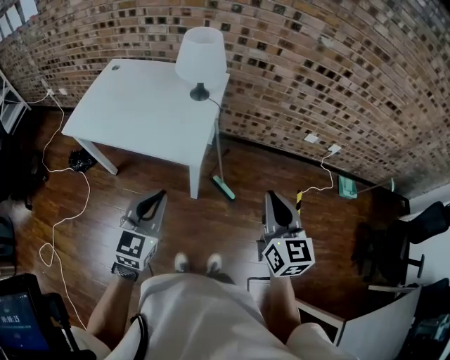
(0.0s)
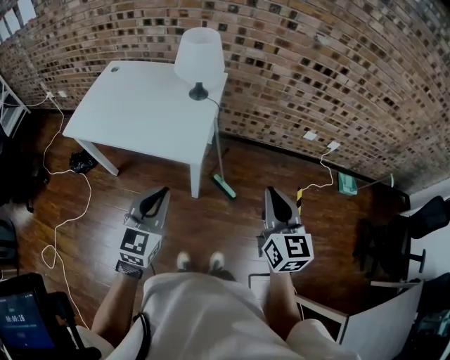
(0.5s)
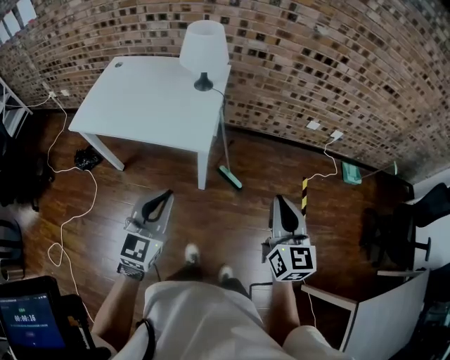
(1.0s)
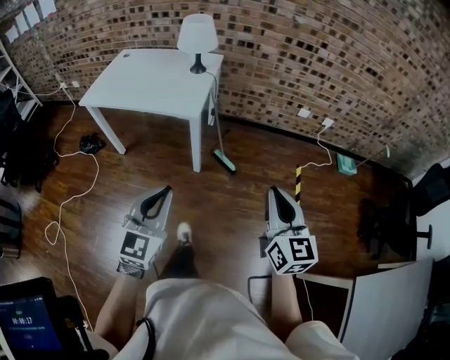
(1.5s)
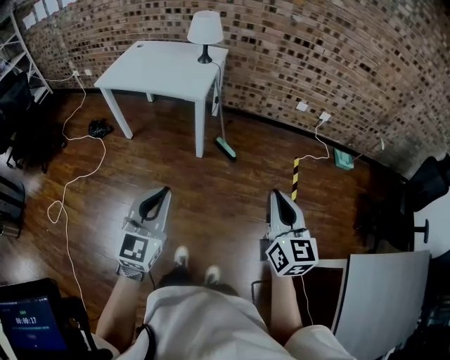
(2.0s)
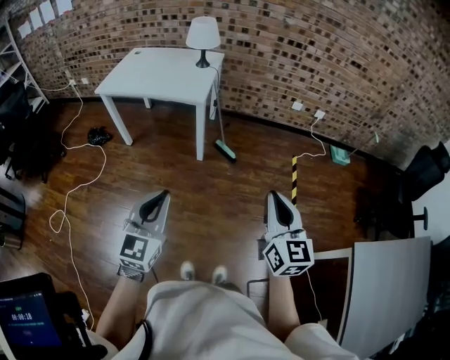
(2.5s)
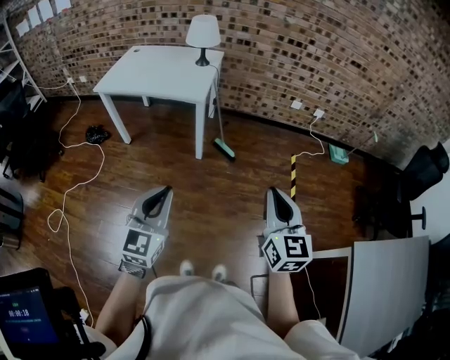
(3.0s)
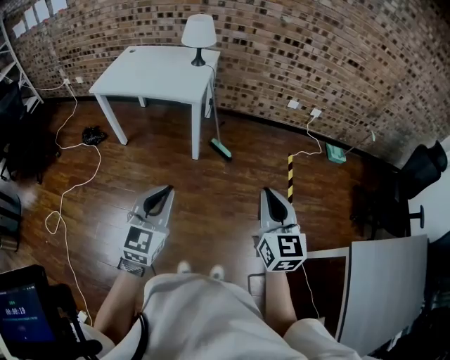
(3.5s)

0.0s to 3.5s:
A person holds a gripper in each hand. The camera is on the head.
0.0s to 2.0s: The two grippers travel together, backward, approximately 40 cm.
2.0s to 3.5s: The right gripper shifts roughly 5 cm to the left.

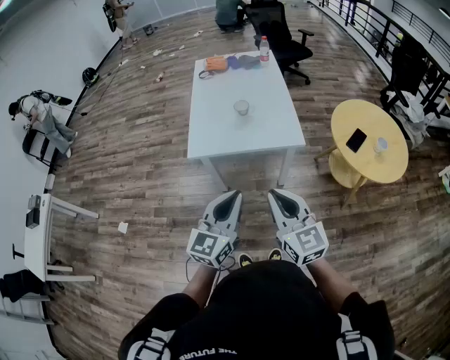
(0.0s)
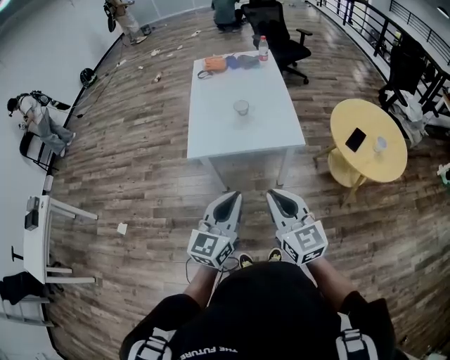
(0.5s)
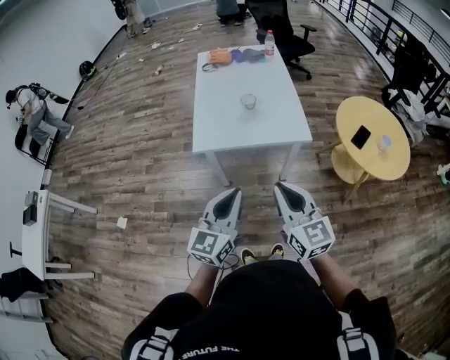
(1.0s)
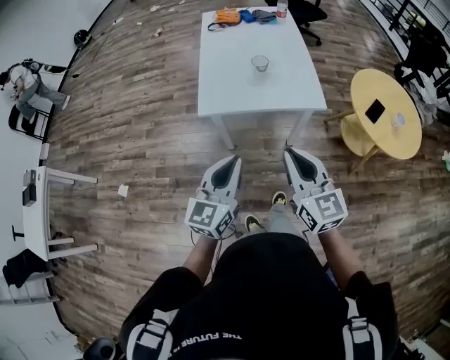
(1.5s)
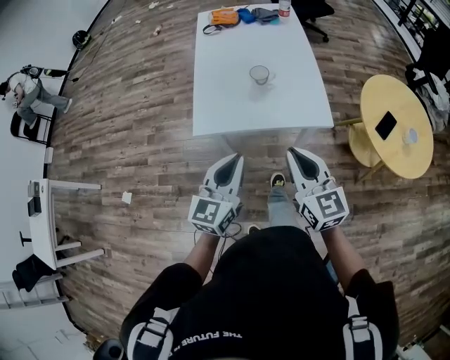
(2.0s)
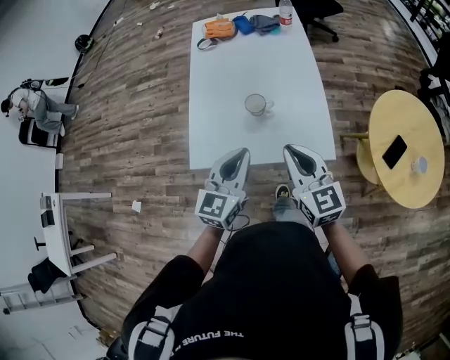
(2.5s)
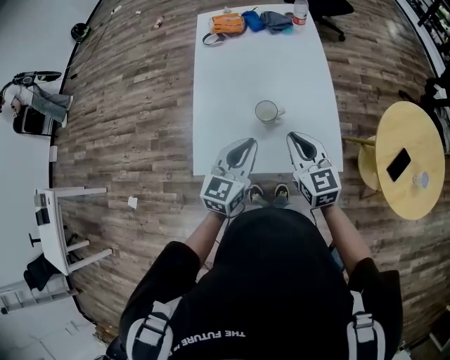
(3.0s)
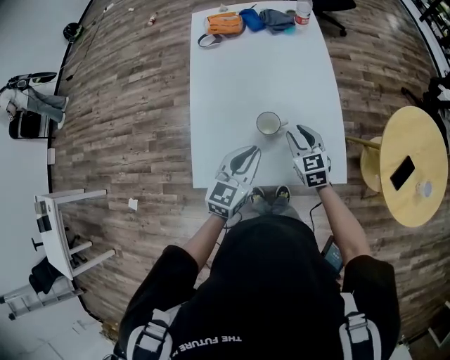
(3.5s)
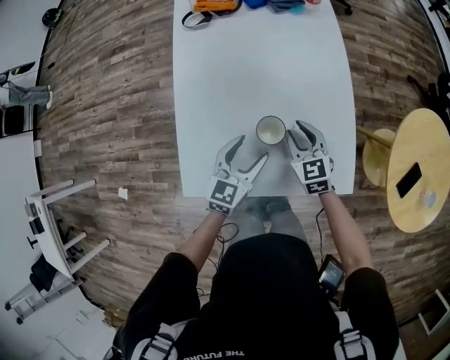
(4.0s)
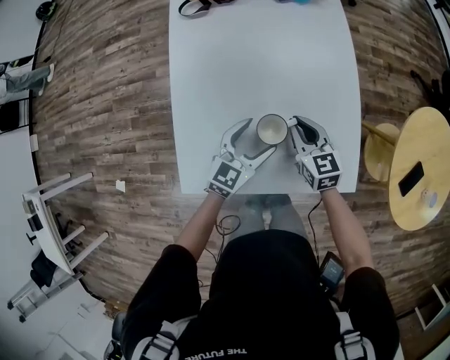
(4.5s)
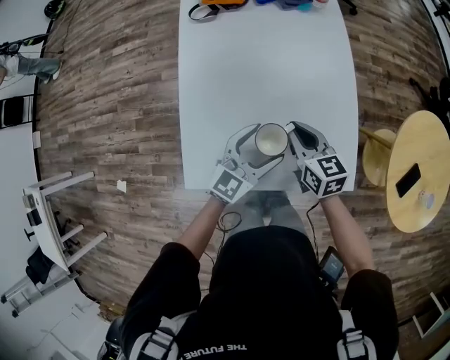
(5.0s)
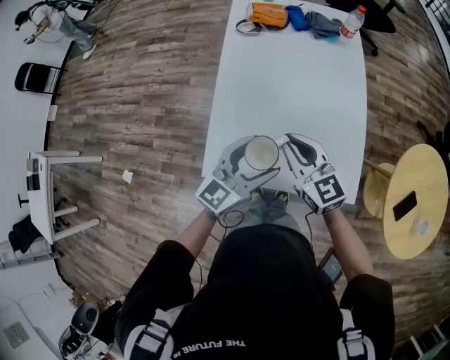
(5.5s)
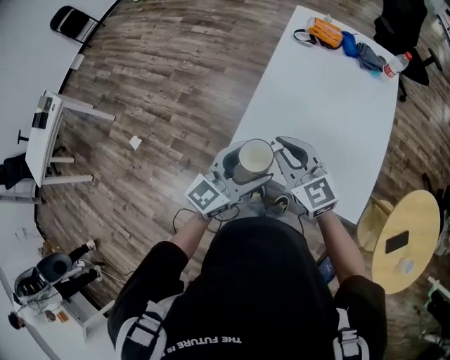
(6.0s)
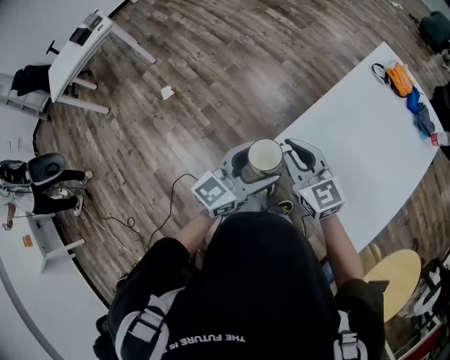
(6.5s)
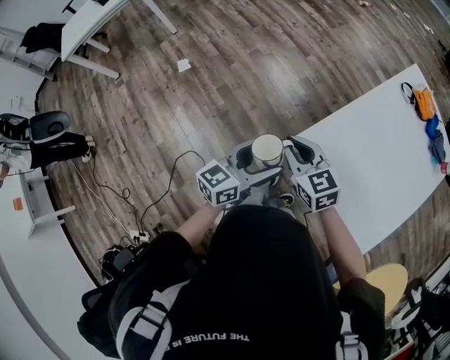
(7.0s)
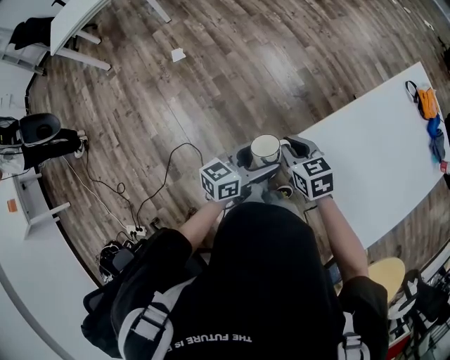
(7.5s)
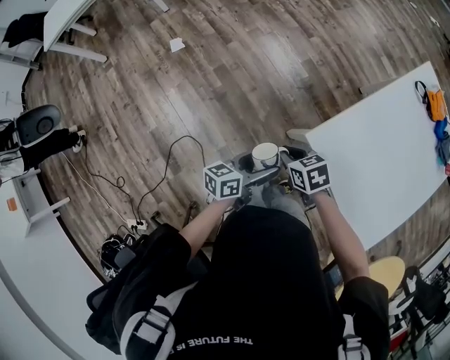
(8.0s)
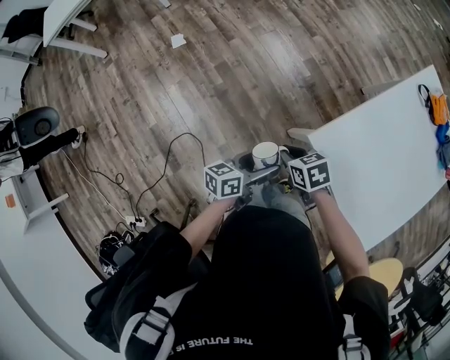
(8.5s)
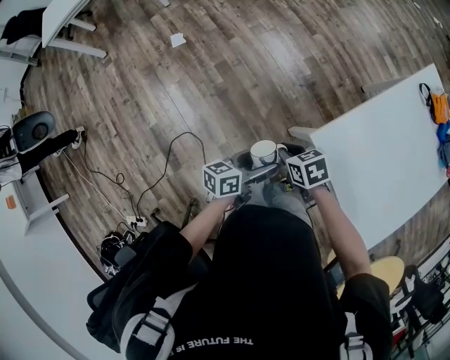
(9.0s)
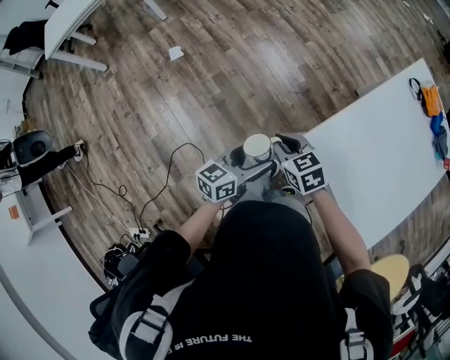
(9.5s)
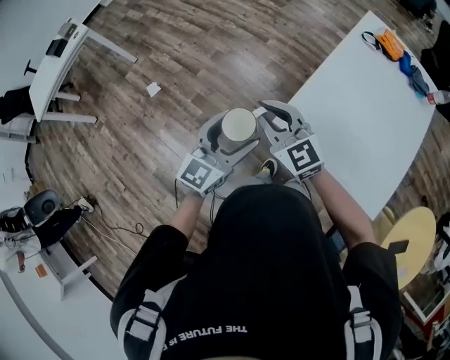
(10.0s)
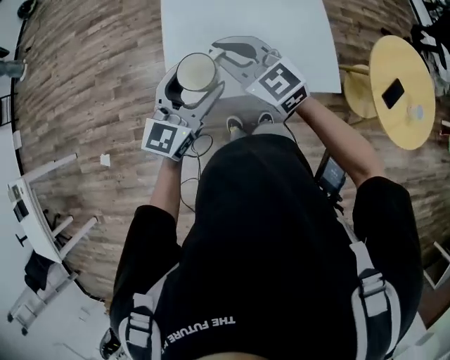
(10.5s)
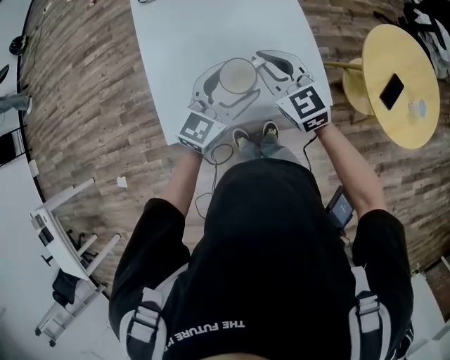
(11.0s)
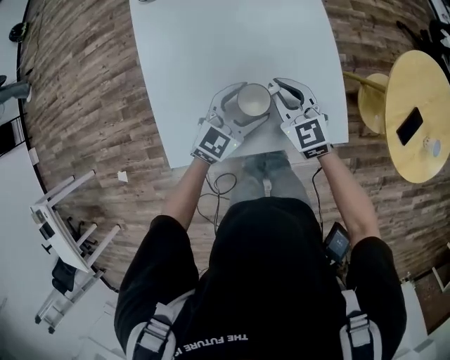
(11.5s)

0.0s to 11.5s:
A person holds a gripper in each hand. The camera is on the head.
0.0s to 2.0s: The left gripper shifts some 20 cm forward and downward; the right gripper heads forward, covering approximately 20 cm.
2.0s to 4.0s: Both grippers travel together forward and downward, approximately 50 cm. The right gripper swivels approximately 30 degrees, and opens; the left gripper opens its fingers.
4.0s to 6.0s: The right gripper moves approximately 35 cm, and rotates some 40 degrees. Meanwhile the left gripper ends up some 25 cm from where it was, and changes its angle by approximately 20 degrees.
6.0s to 7.5s: The right gripper changes place by approximately 30 cm, and tips its fingers downward by roughly 30 degrees. The left gripper changes place by approximately 30 cm, and rotates roughly 40 degrees.
7.5s to 9.5s: The right gripper goes downward and returns, about 10 cm each way.
9.5s to 11.5s: Both grippers are carried roughly 60 cm. The left gripper changes its angle by roughly 80 degrees. Meanwhile the right gripper turns by roughly 60 degrees.

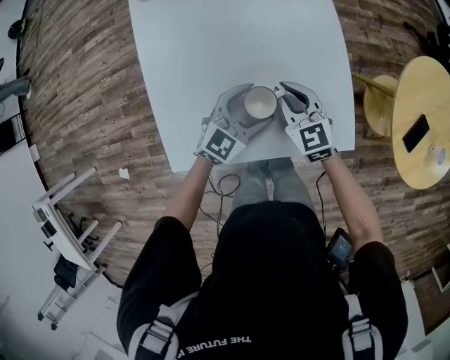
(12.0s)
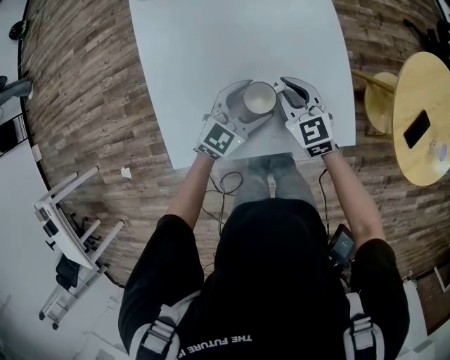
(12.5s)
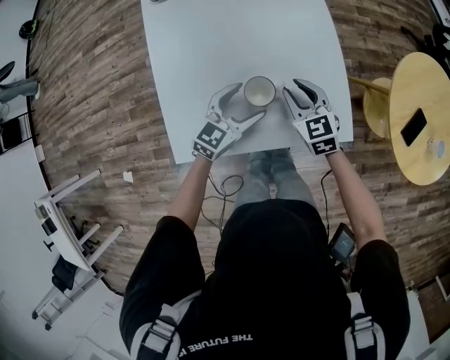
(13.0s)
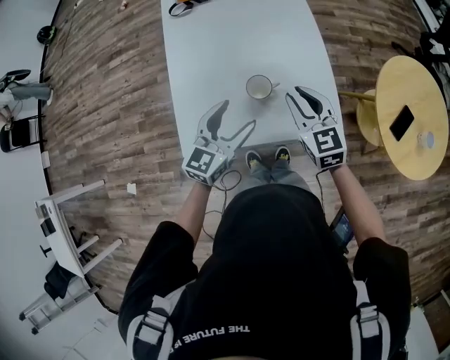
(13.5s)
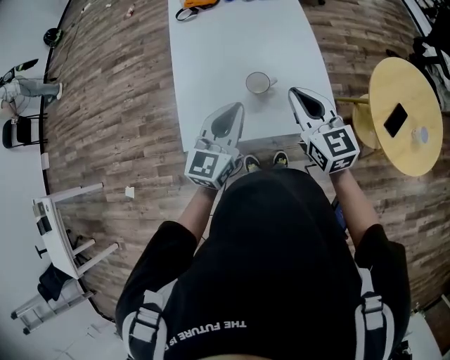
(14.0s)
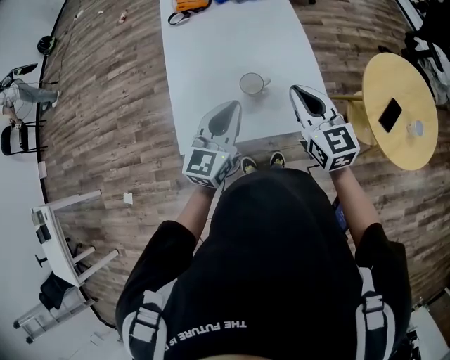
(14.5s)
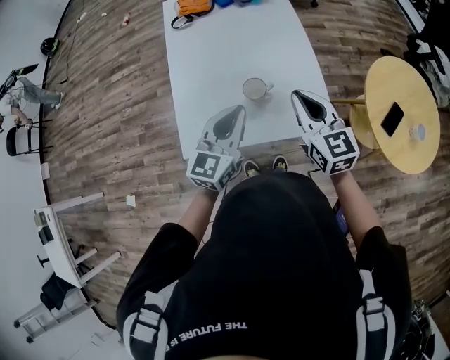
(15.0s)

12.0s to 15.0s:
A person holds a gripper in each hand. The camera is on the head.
12.0s to 13.5s: Both grippers travel together upward and backward, approximately 20 cm. The left gripper swivels some 20 degrees.
13.5s to 15.0s: The grippers both shift upward by roughly 10 cm. The left gripper closes its fingers. Meanwhile the right gripper closes.

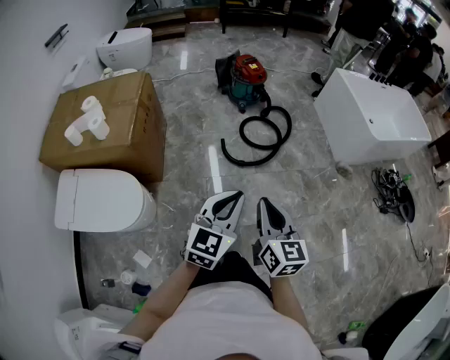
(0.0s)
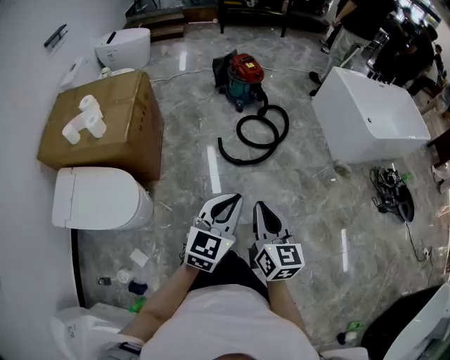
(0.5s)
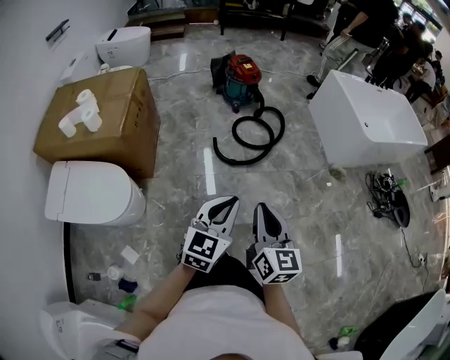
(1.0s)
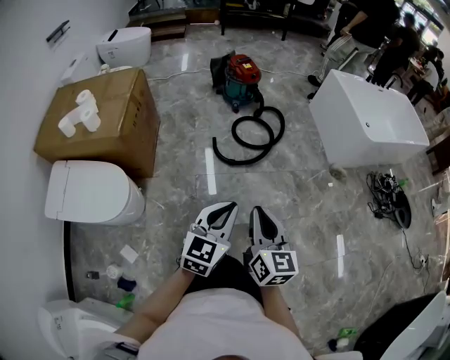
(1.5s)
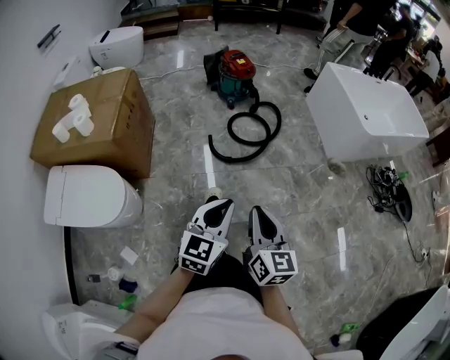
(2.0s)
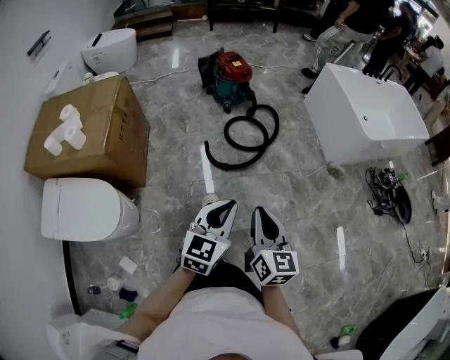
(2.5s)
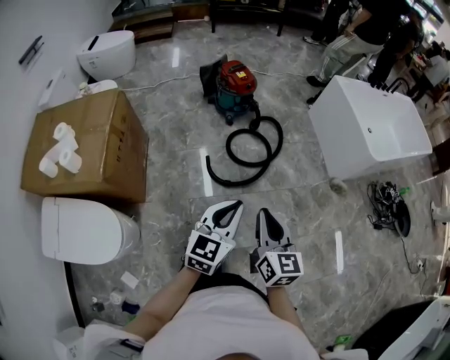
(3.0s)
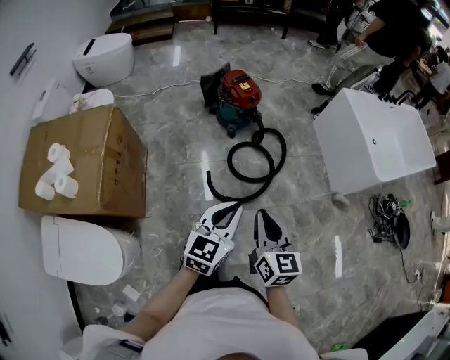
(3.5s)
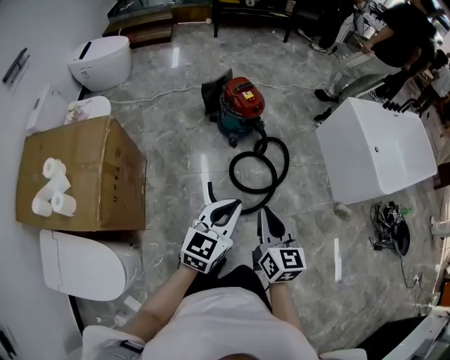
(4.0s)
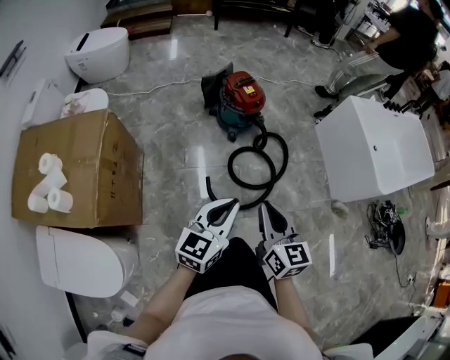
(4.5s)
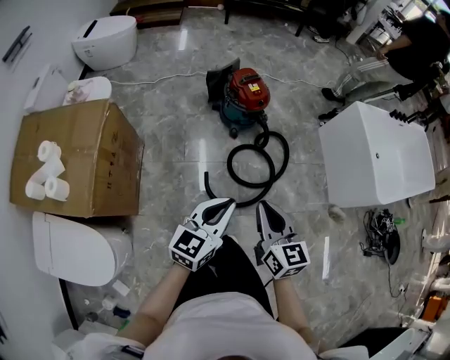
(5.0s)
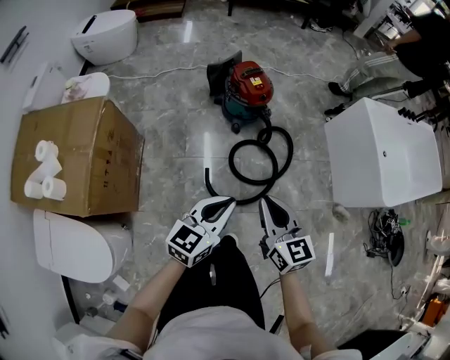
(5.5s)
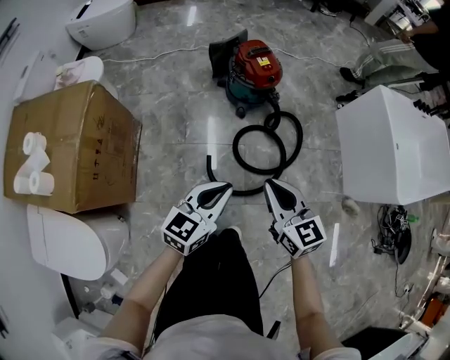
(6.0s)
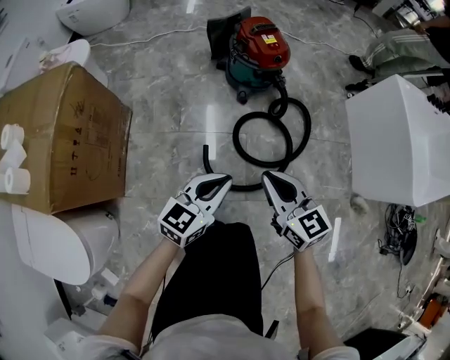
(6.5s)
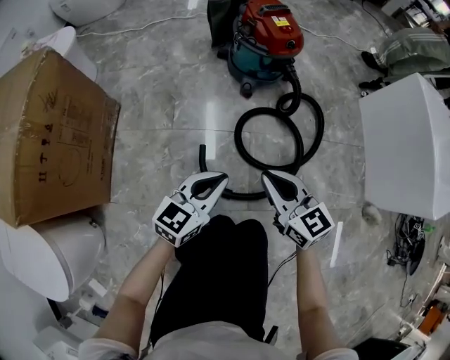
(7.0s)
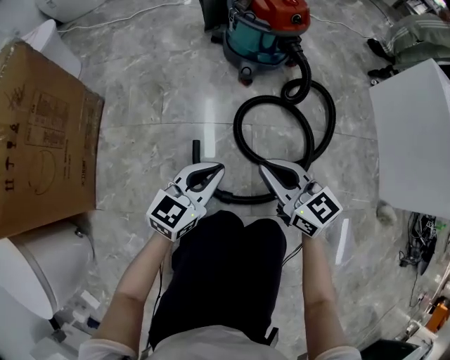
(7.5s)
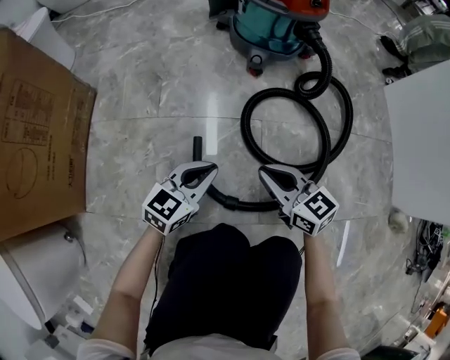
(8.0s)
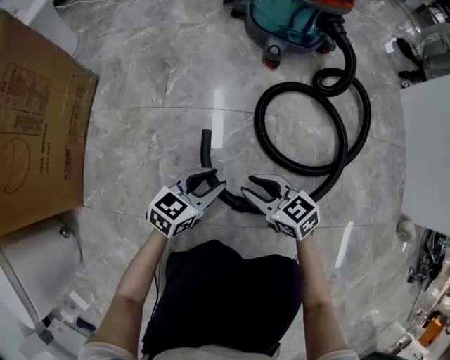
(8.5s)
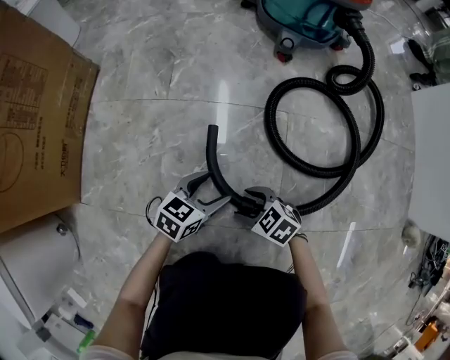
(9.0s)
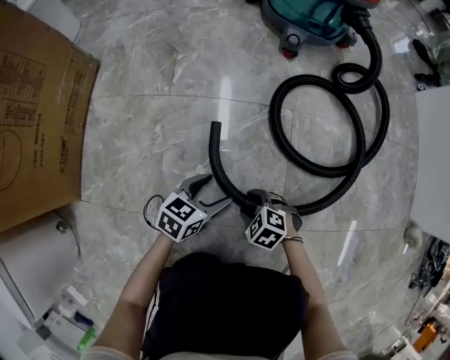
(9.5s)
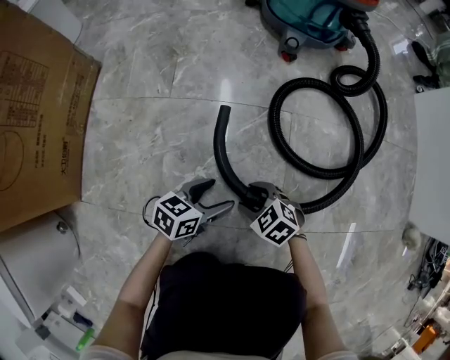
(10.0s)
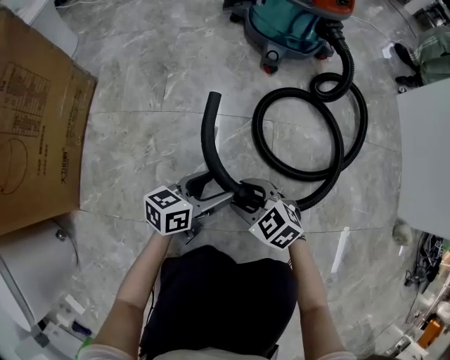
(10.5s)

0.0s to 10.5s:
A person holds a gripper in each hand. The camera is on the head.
0.0s to 2.0s: The left gripper shifts approximately 10 cm to the right and downward, while the right gripper shifts some 10 cm to the right.
2.0s to 4.0s: The two grippers travel together, forward, some 40 cm.
4.0s to 6.5s: The left gripper goes roughly 25 cm downward. Meanwhile the right gripper travels downward and forward by some 25 cm, and swivels roughly 30 degrees.
6.5s to 8.5s: Both grippers move downward, about 50 cm. The right gripper swivels approximately 30 degrees.
8.5s to 10.5s: The left gripper moves some 10 cm downward and comes back, turns by about 20 degrees, and opens up; the right gripper moves roughly 15 cm downward and comes back, rotates about 20 degrees, and opens.
